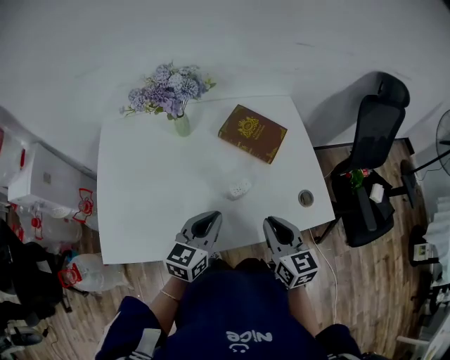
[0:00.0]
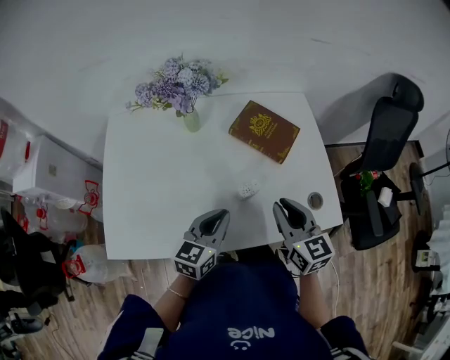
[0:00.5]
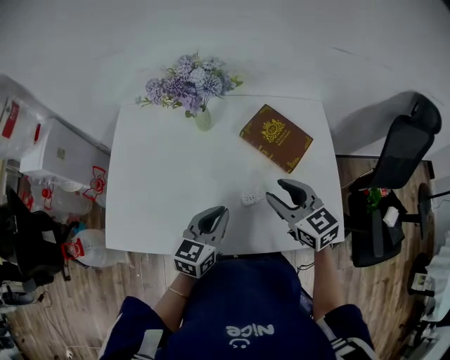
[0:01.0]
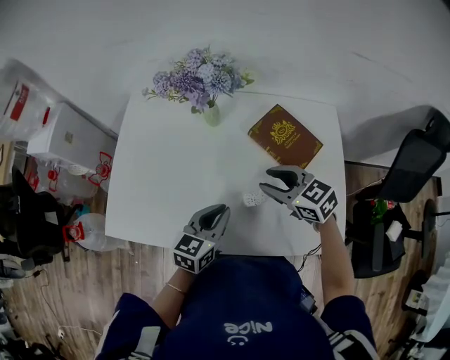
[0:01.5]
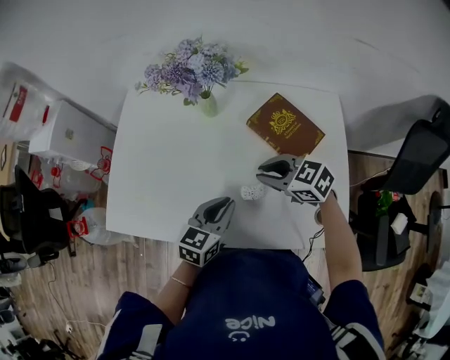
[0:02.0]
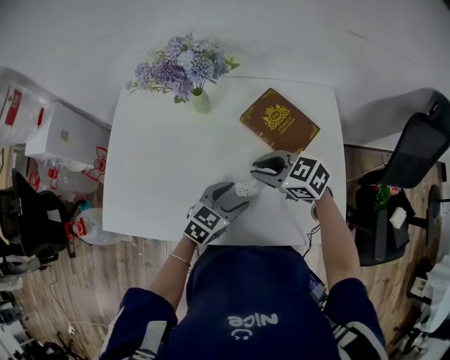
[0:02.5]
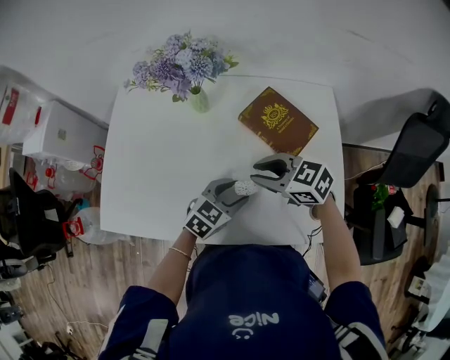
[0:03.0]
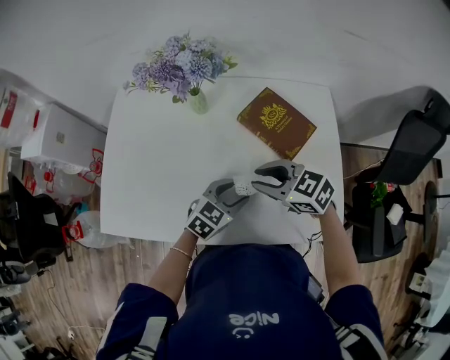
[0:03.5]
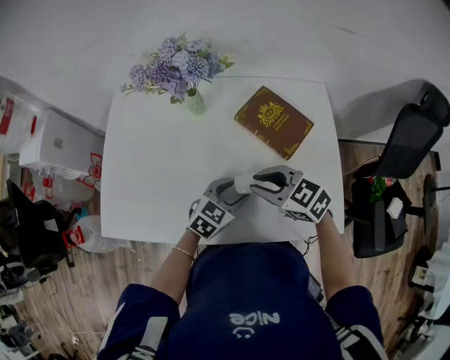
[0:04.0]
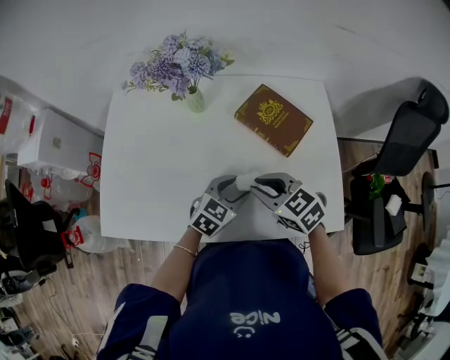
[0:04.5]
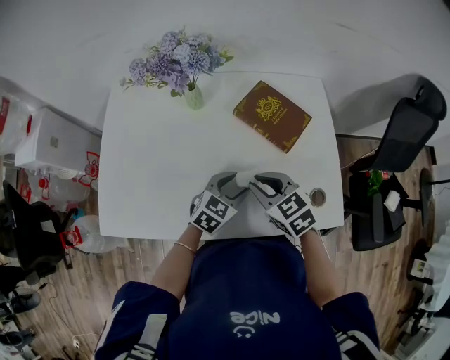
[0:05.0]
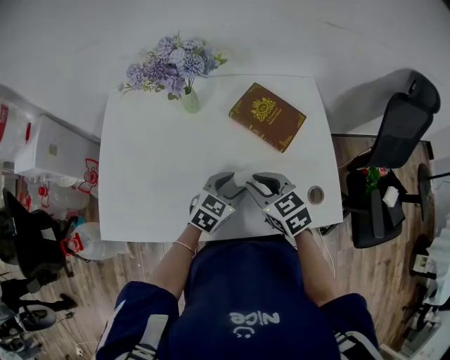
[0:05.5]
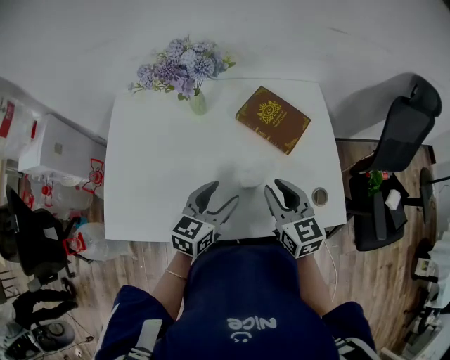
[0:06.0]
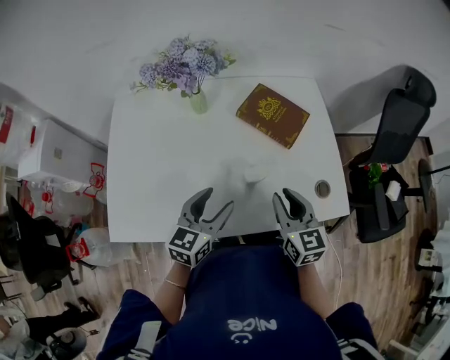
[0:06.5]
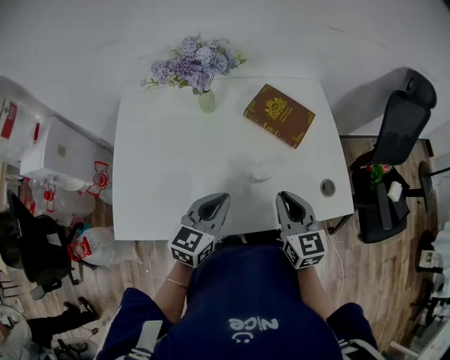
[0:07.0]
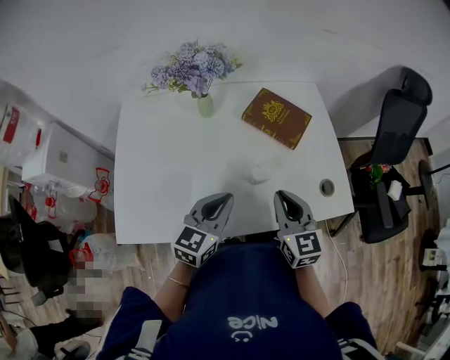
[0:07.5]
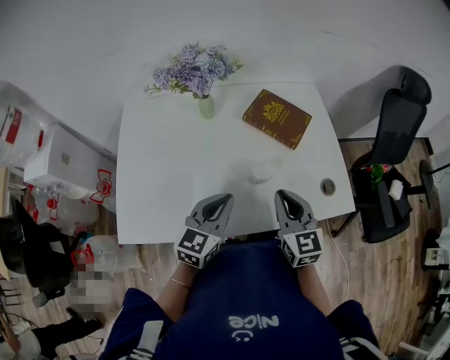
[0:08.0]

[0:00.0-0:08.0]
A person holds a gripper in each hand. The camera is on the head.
0:00.0 to 0:02.0: The right gripper ends up some 20 cm from where it was, and turns by approximately 60 degrees. The left gripper shifts by some 10 cm.
0:02.0 to 0:04.0: The left gripper moves roughly 10 cm, changes its angle by roughly 30 degrees, and opens.
0:04.0 to 0:06.0: The left gripper moves upward and to the left, about 10 cm, and rotates about 20 degrees. Meanwhile the right gripper shifts by roughly 5 cm, and turns by approximately 50 degrees.
0:06.0 to 0:08.0: The grippers both shift backward by about 5 cm. The left gripper closes up.

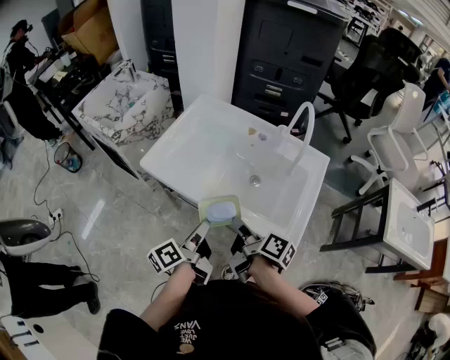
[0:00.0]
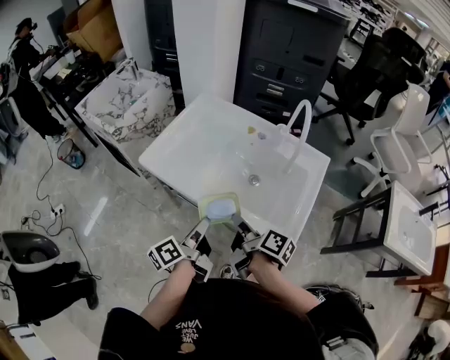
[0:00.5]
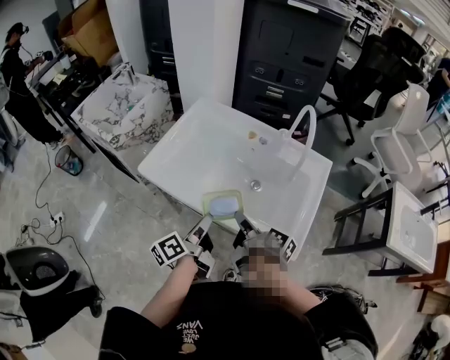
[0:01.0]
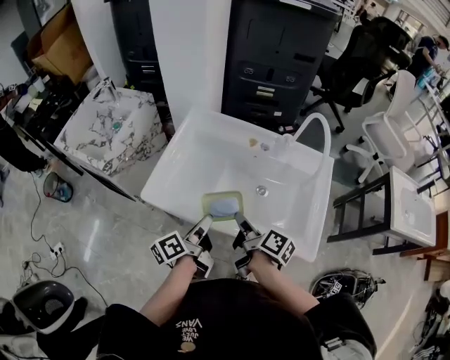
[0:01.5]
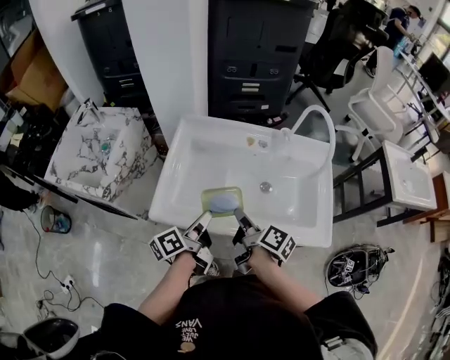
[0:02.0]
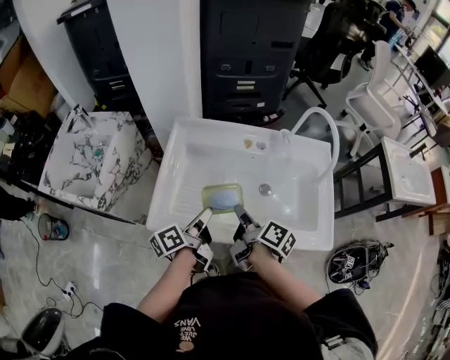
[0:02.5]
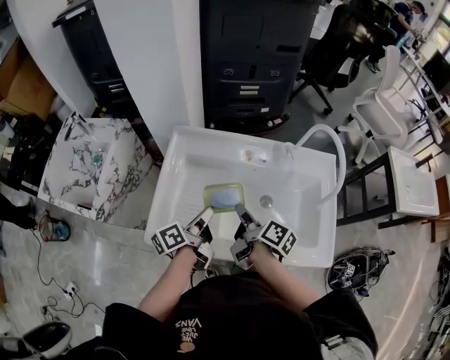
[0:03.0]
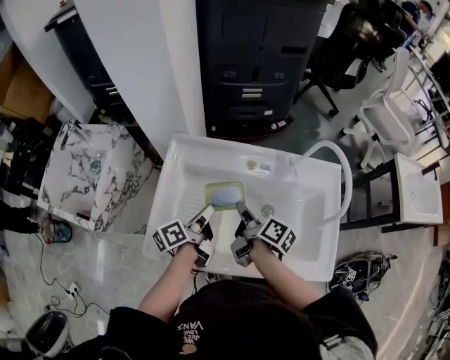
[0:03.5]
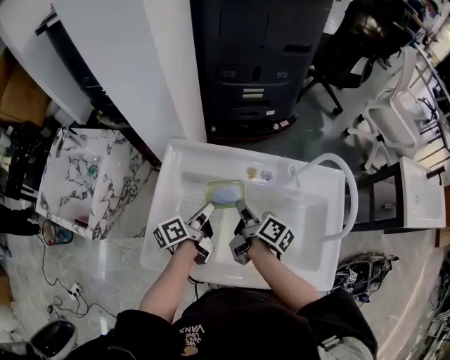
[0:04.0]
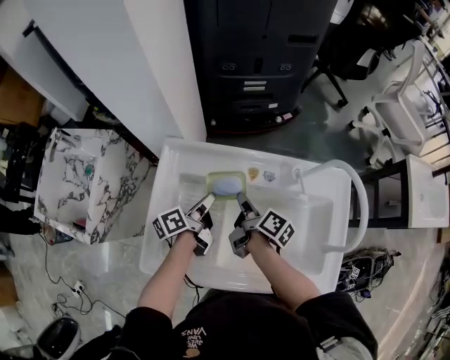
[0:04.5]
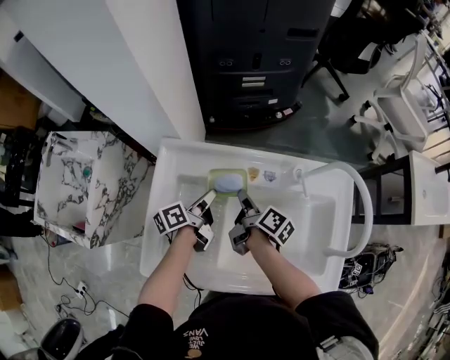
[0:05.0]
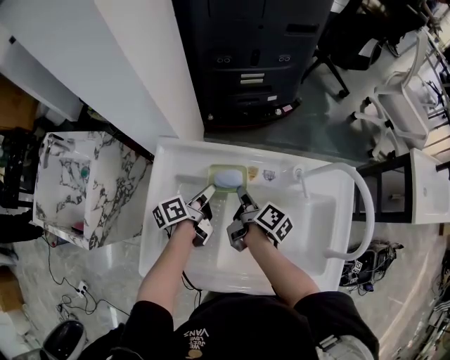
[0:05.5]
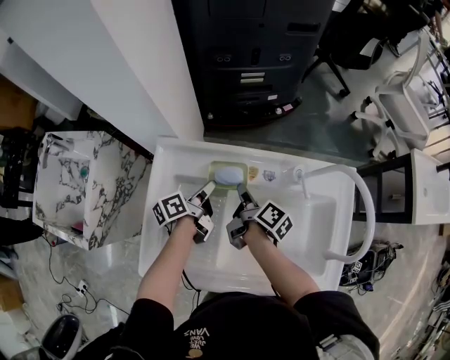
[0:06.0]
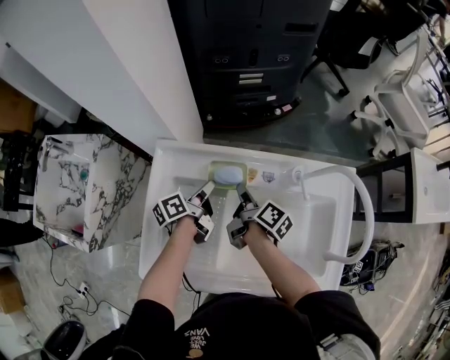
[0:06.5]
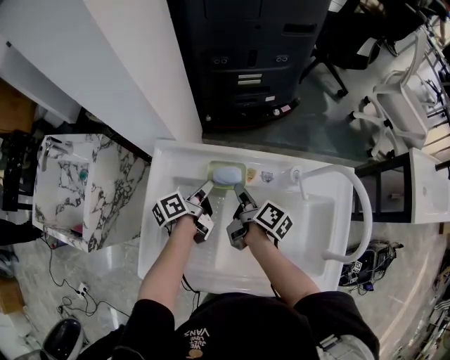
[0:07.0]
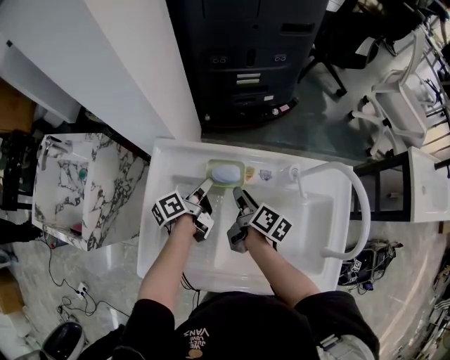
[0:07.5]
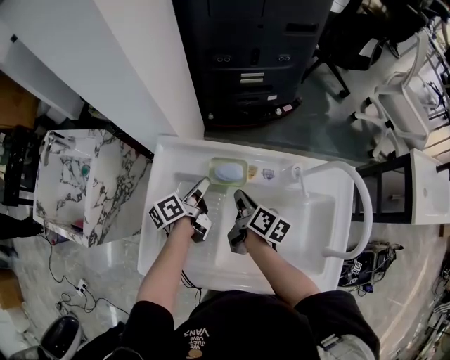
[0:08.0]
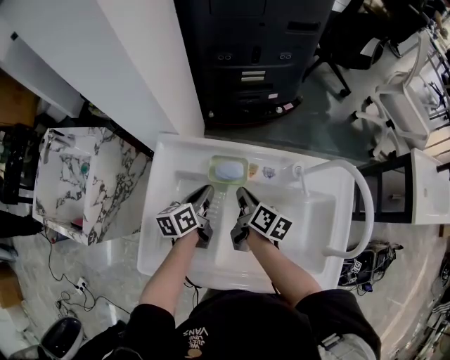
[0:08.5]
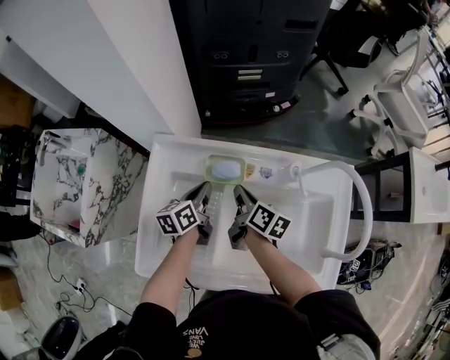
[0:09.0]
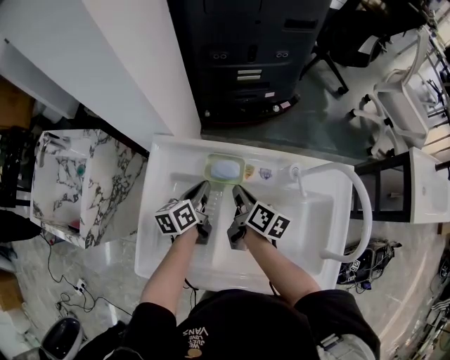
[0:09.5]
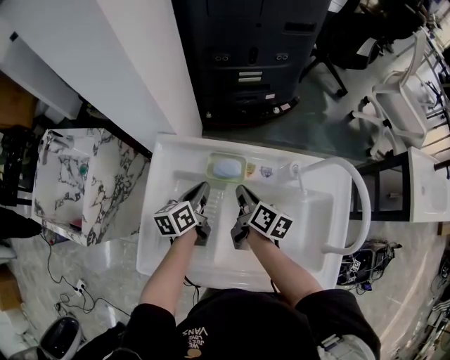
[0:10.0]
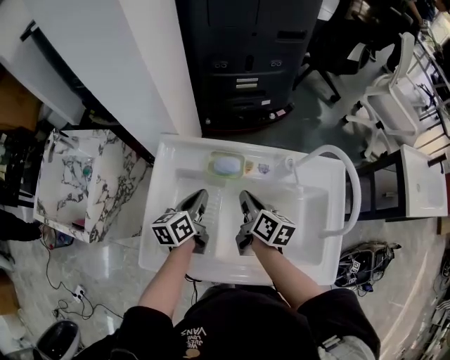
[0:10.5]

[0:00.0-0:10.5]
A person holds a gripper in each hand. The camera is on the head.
0:00.0 to 0:02.0: The grippers both shift forward and to the left by about 15 cm. The left gripper turns by roughly 20 degrees. The right gripper changes its angle by roughly 20 degrees.
0:02.0 to 0:04.0: The two grippers go approximately 20 cm forward.
0:04.0 to 0:06.5: The left gripper is displaced forward and downward by roughly 10 cm. Meanwhile the right gripper shifts some 10 cm forward.
0:06.5 to 0:08.5: The left gripper swivels about 30 degrees, while the right gripper turns by some 20 degrees.
0:08.5 to 0:10.5: The right gripper moves approximately 5 cm. The left gripper changes place by some 5 cm.

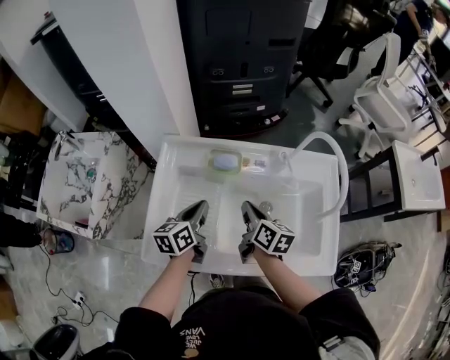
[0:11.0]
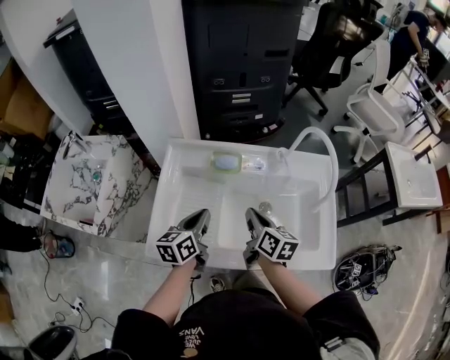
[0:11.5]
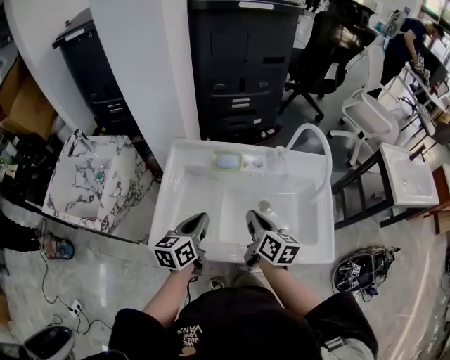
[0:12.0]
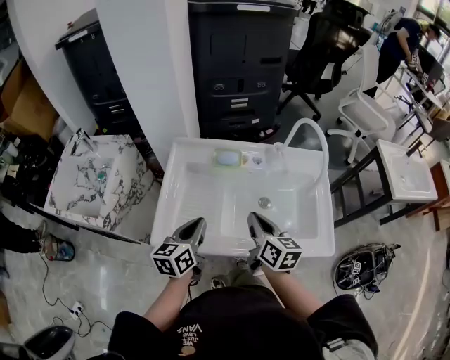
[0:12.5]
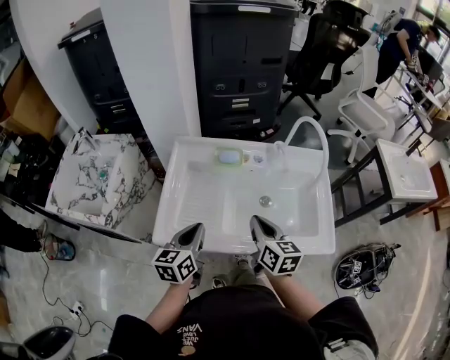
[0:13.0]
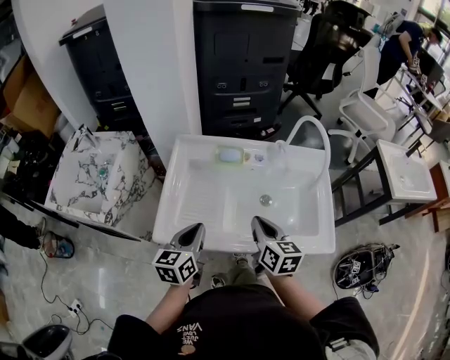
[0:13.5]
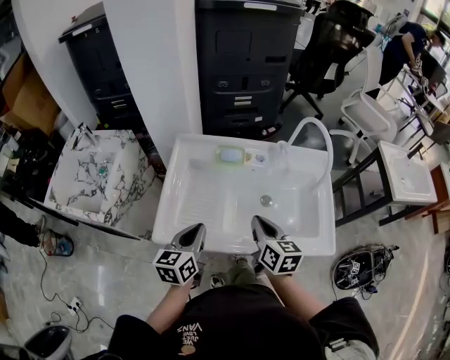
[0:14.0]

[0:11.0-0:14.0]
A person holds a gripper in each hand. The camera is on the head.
0:11.0 to 0:12.5: The two grippers go approximately 15 cm backward and upward.
0:12.5 to 0:14.0: The grippers stay close to where they were, moving slightly.

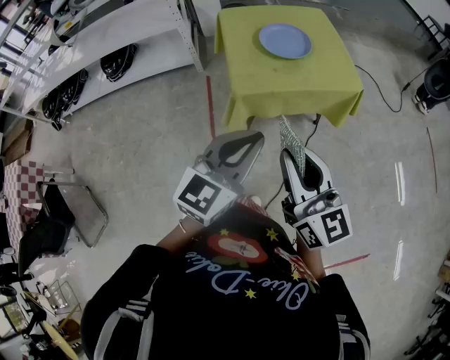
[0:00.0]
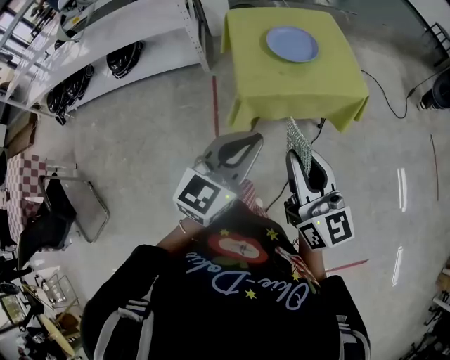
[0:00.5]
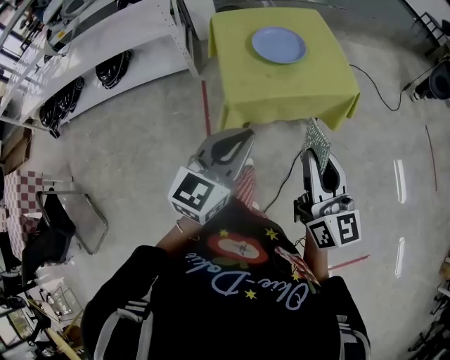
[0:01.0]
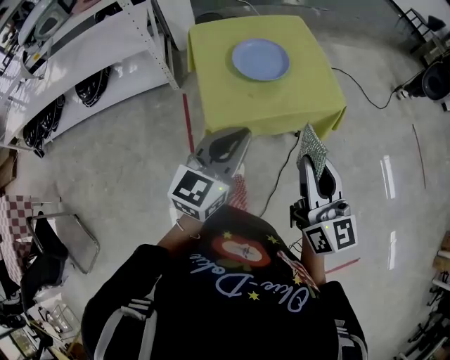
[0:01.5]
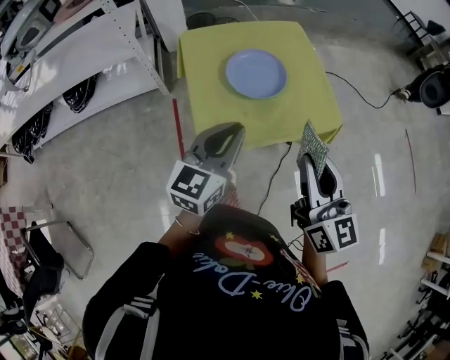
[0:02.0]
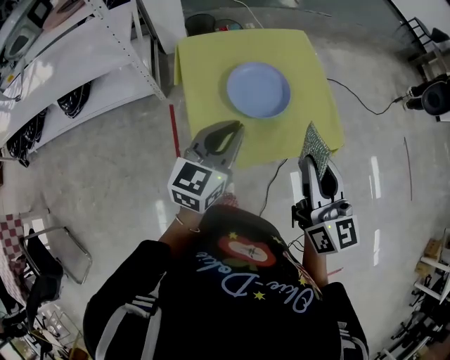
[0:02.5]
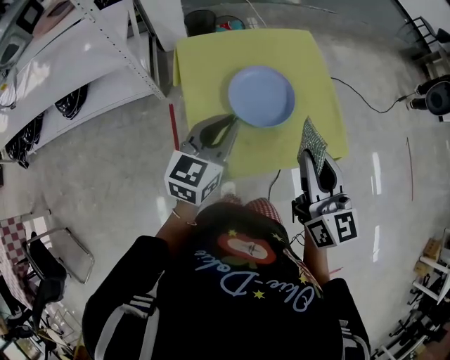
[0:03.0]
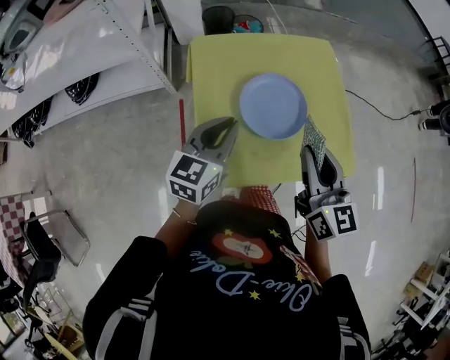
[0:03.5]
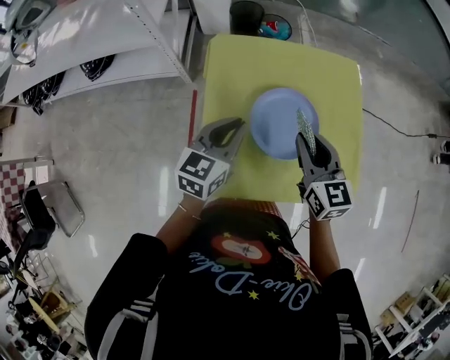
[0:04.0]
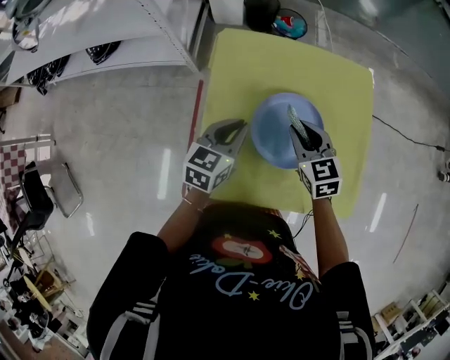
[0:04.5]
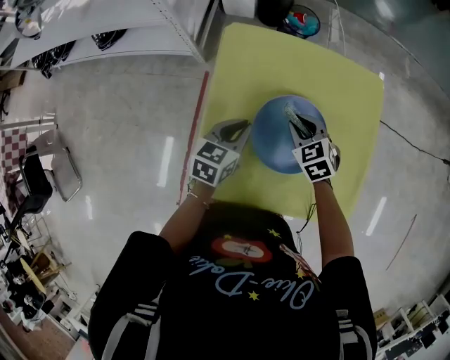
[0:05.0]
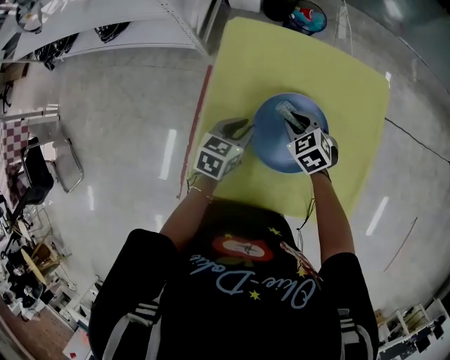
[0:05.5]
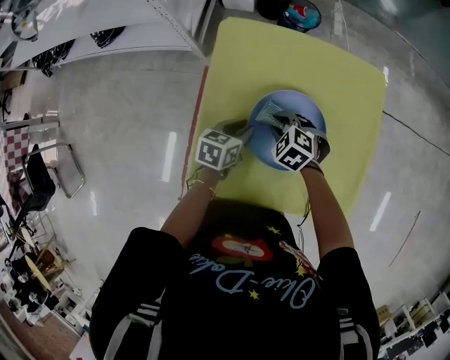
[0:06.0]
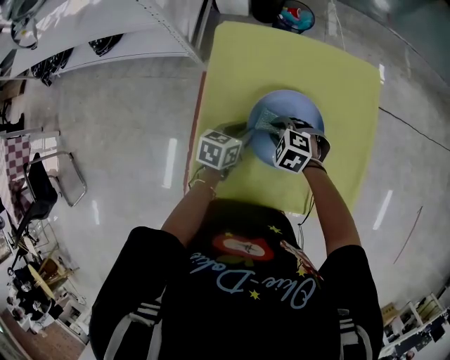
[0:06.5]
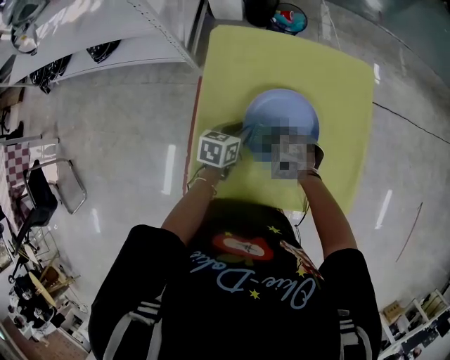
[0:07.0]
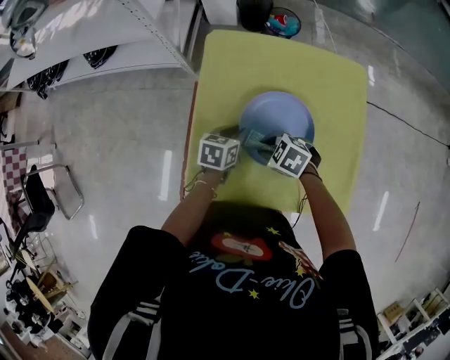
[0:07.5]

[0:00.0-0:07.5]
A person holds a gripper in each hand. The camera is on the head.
0:00.0 to 0:02.0: The grippers both shift forward by about 25 cm.
0:02.0 to 0:04.0: Both grippers travel together forward, approximately 30 cm. The right gripper rotates approximately 30 degrees.
0:04.0 to 0:05.5: The right gripper shifts some 20 cm downward and forward, and angles its fingers downward, by approximately 40 degrees. Meanwhile the left gripper heads downward, covering approximately 15 cm, and swivels some 20 degrees.
0:05.5 to 0:07.5: The right gripper moves about 10 cm, and changes its angle by some 30 degrees.
